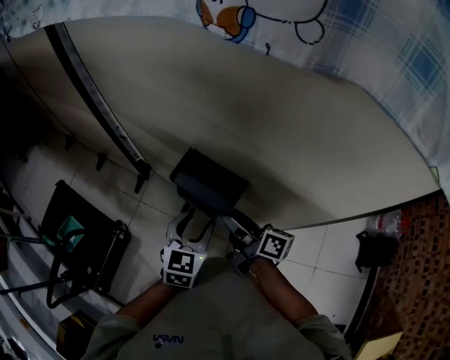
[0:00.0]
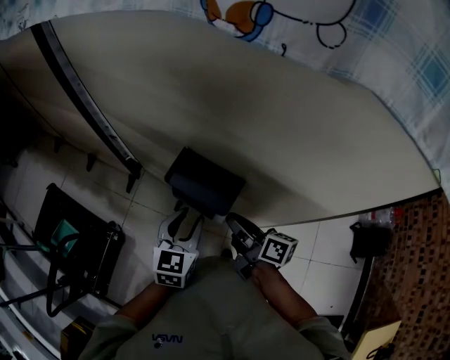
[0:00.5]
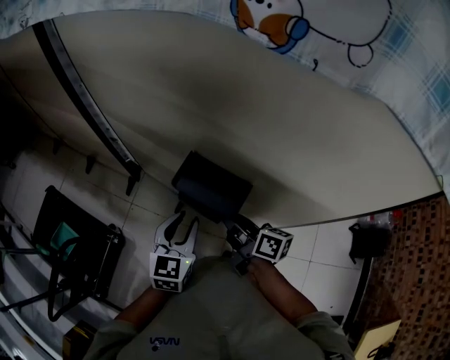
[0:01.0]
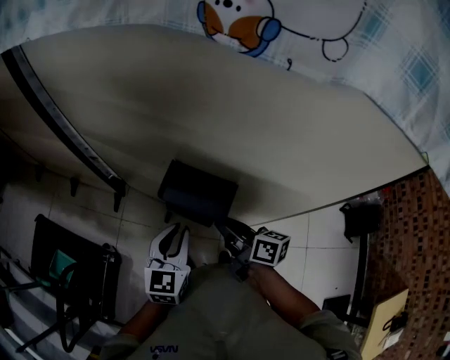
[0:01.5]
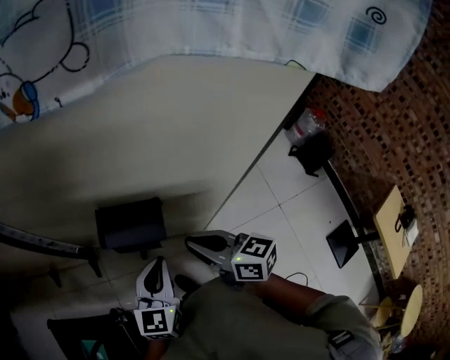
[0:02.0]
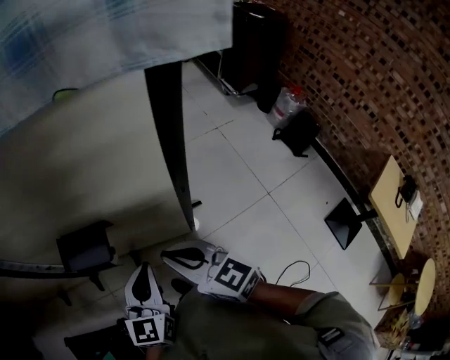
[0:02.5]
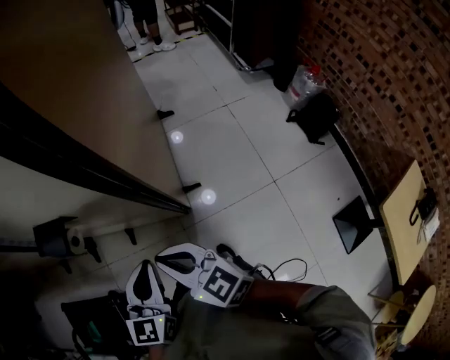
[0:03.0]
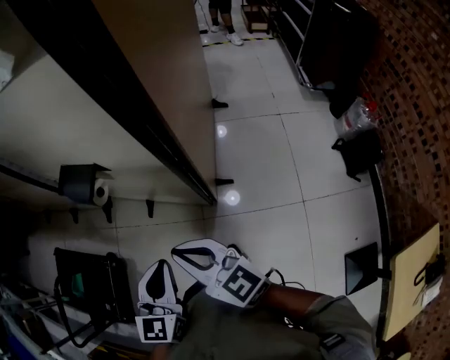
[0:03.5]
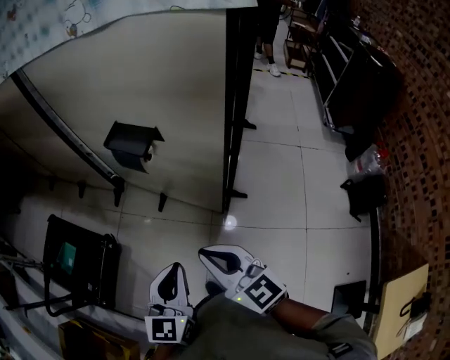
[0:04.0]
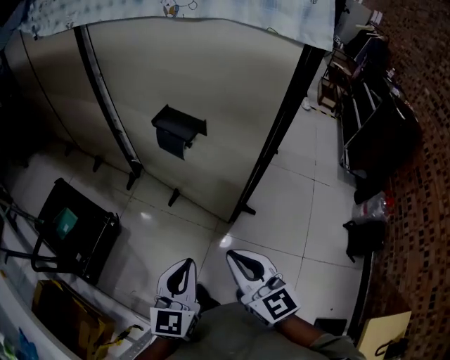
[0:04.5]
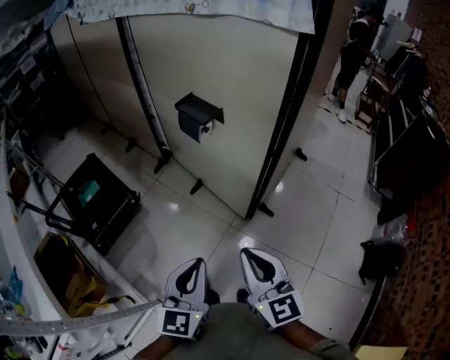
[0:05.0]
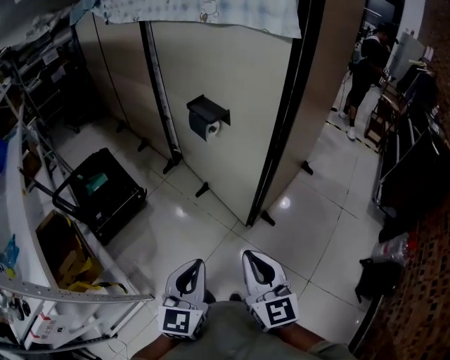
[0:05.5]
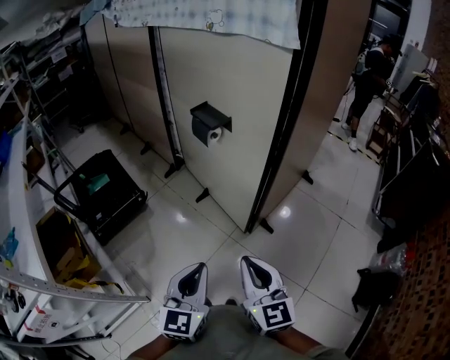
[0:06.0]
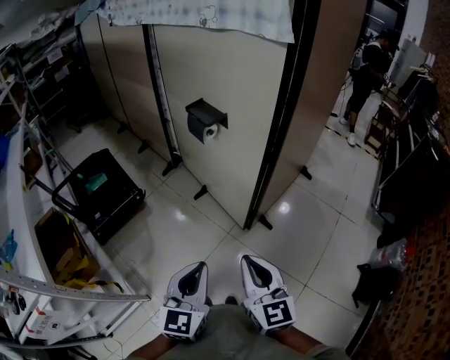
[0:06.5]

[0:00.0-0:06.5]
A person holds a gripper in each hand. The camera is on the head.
0:00.0 to 0:02.0: The right gripper goes approximately 10 cm backward and upward, turns by roughly 30 degrees, and closes. Meanwhile the left gripper ends up about 5 cm from where it was, swivels roughly 30 degrees, and closes.
0:02.0 to 0:04.5: The left gripper moves roughly 35 cm, and swivels about 30 degrees, while the right gripper changes place by some 35 cm, and rotates approximately 30 degrees.
0:04.5 to 0:06.5: Both grippers move backward and to the right, approximately 20 cm.

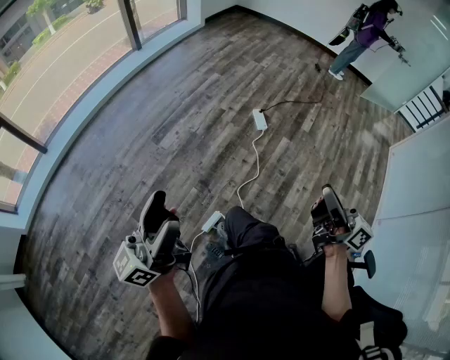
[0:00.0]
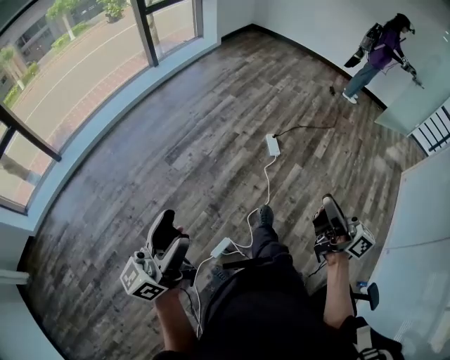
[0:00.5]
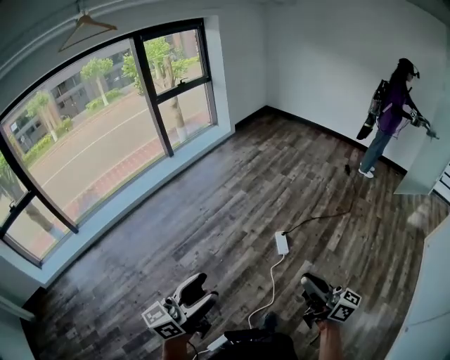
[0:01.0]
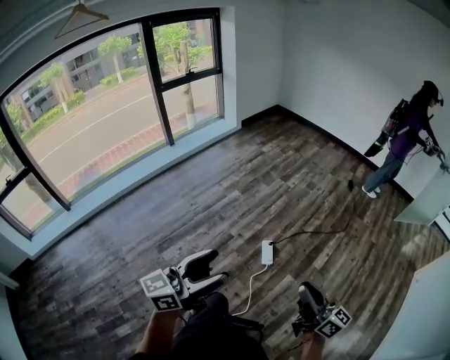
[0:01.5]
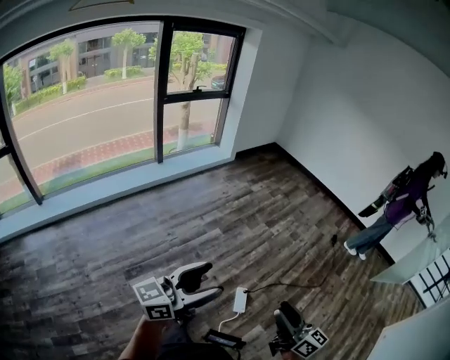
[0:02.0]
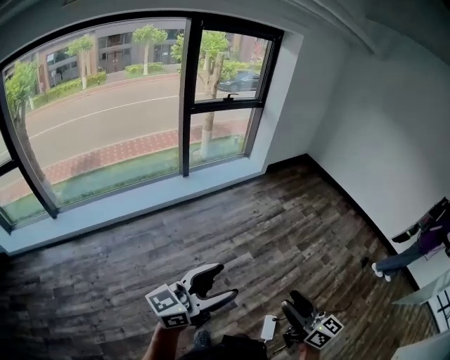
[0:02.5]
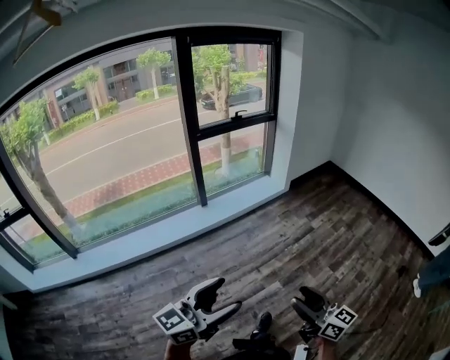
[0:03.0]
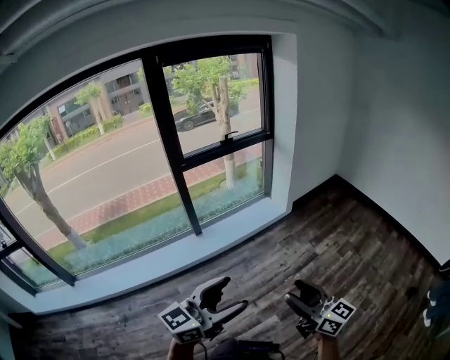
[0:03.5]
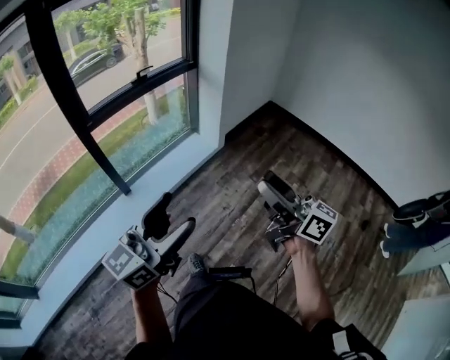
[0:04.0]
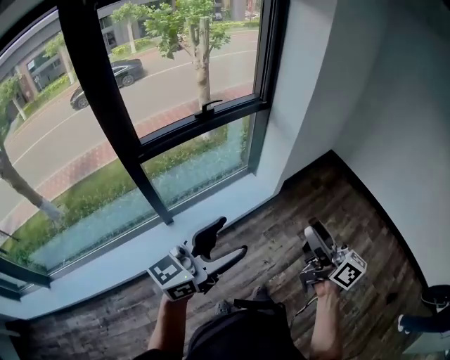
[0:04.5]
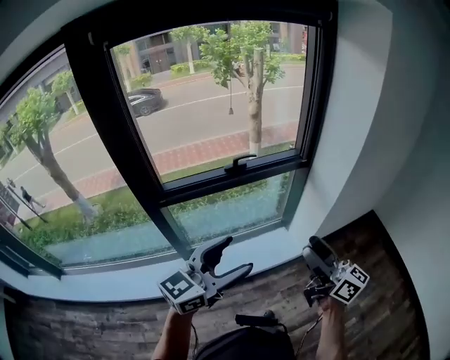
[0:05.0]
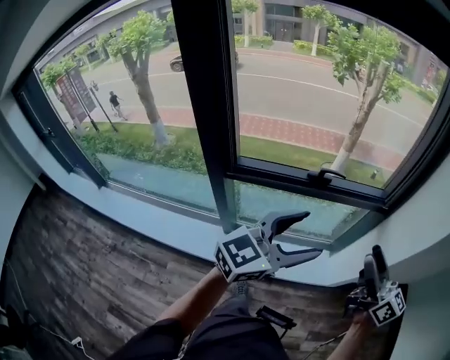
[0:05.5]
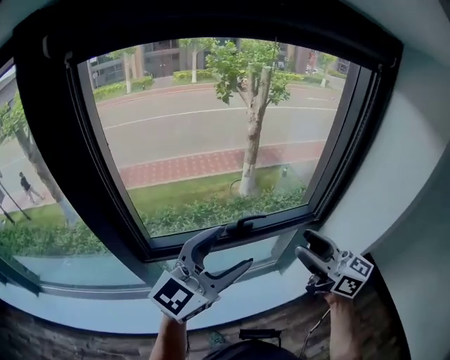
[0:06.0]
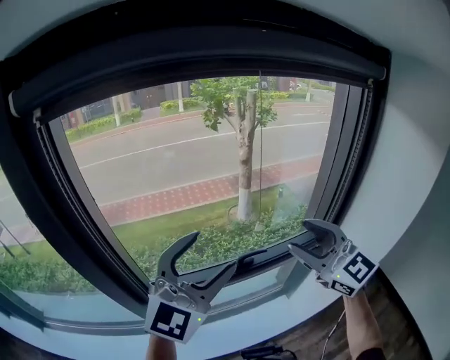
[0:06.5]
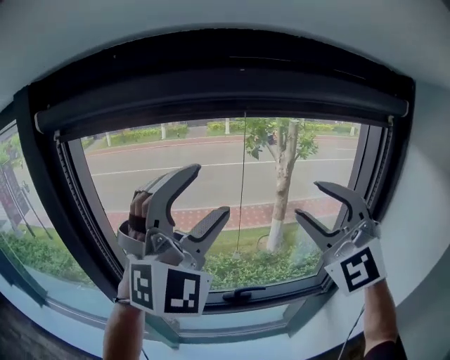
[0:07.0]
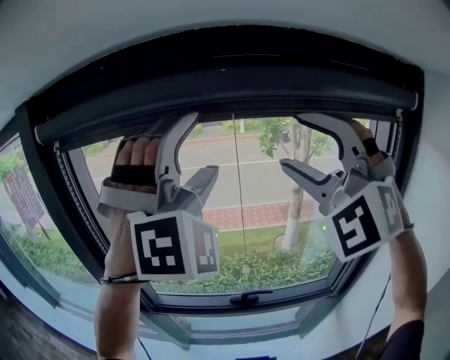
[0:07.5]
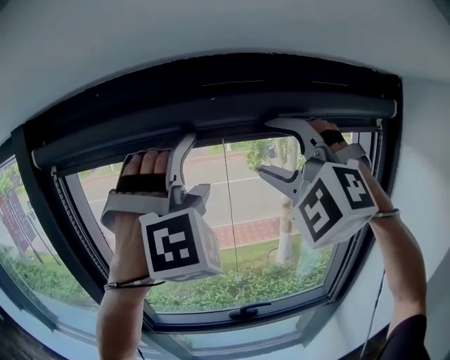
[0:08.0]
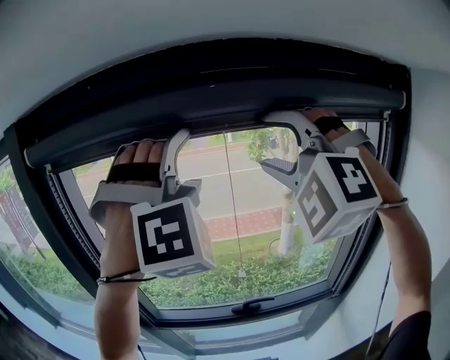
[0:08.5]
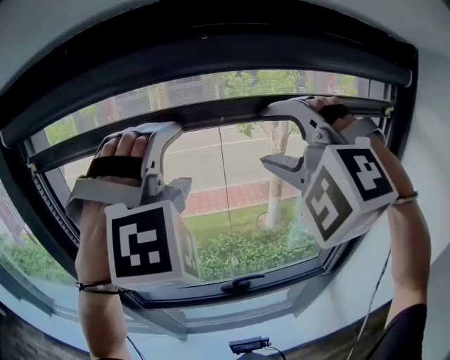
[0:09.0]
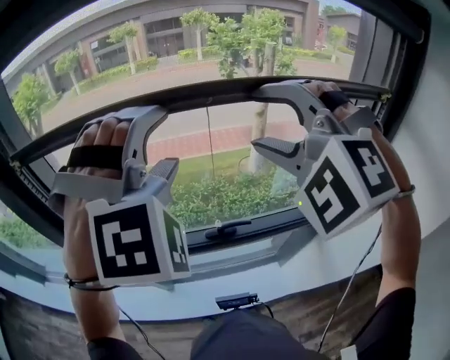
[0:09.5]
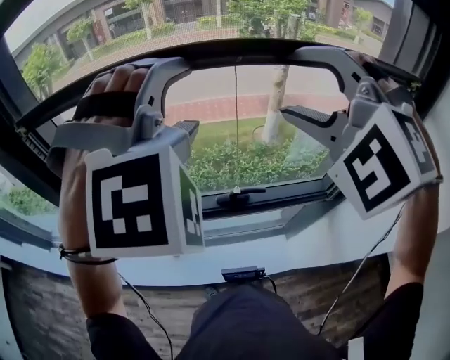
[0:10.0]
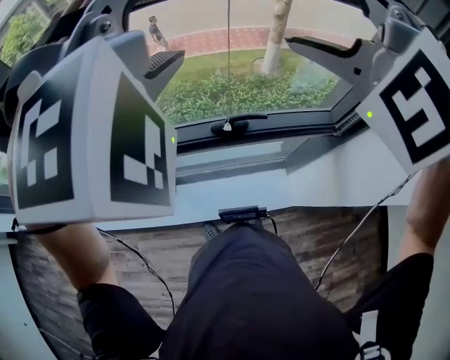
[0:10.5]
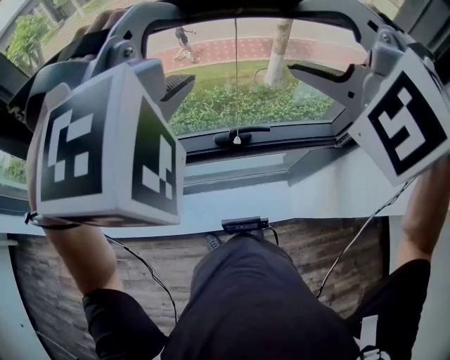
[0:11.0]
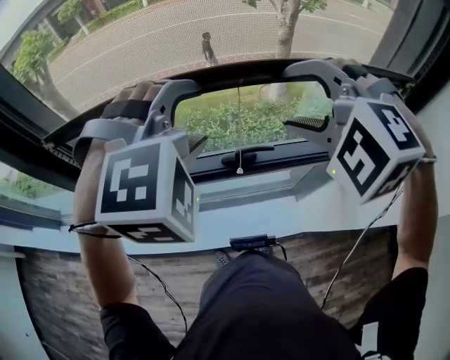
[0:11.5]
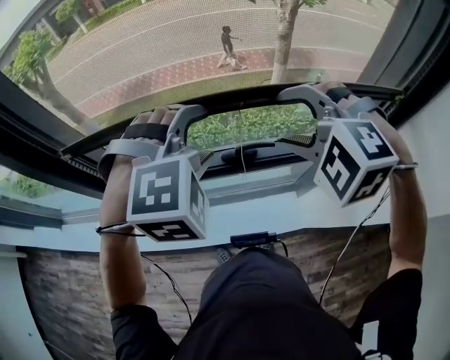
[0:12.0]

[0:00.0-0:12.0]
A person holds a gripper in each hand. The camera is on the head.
0:00.0 to 0:02.0: The two grippers travel together, forward, roughly 60 cm. The right gripper opens its fingers.
0:02.0 to 0:04.0: The two grippers travel together, forward, approximately 1 m.
0:04.0 to 0:06.0: Both grippers are carried about 70 cm. The right gripper turns by approximately 30 degrees. The left gripper turns by about 40 degrees.
0:06.0 to 0:08.0: Both grippers move upward and forward, some 35 cm. The right gripper rotates around the line of its fingers by some 100 degrees, counterclockwise from behind; the left gripper rolls clockwise, seen from behind, by about 90 degrees.
0:08.0 to 0:10.0: Both grippers travel together downward, some 15 cm. The left gripper changes its angle by some 30 degrees, while the right gripper swivels some 30 degrees.
0:10.0 to 0:12.0: The grippers both shift downward by about 15 cm. The left gripper turns by some 30 degrees; the right gripper turns by about 30 degrees.

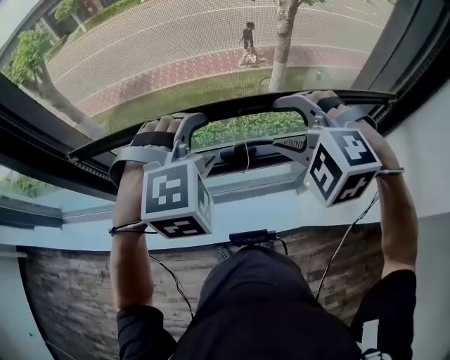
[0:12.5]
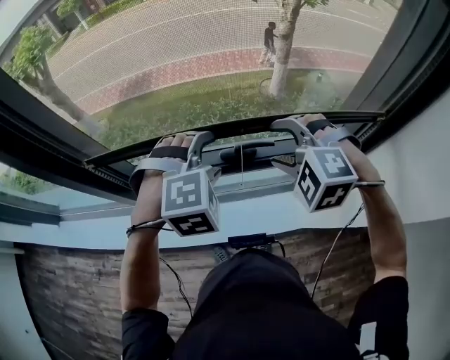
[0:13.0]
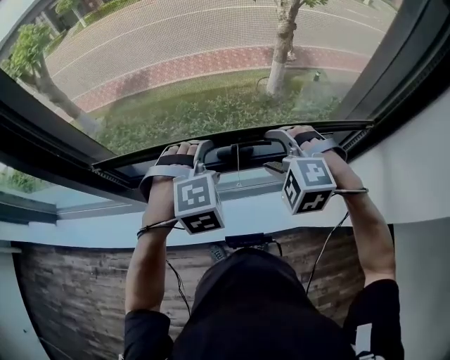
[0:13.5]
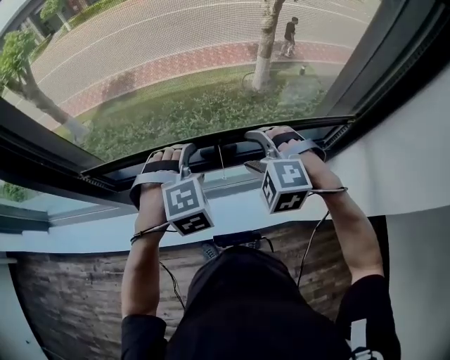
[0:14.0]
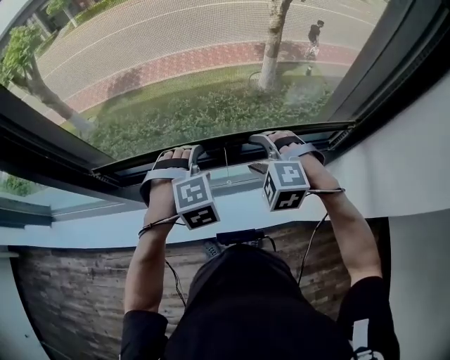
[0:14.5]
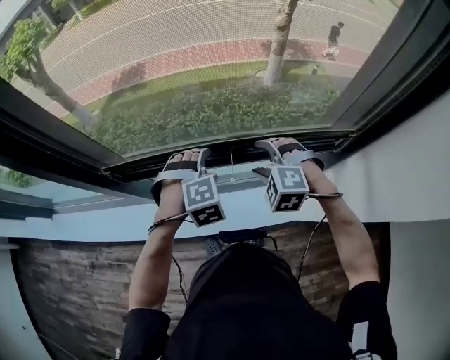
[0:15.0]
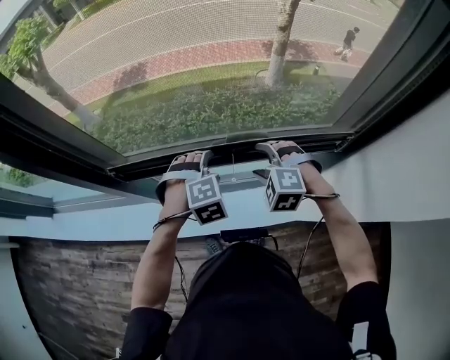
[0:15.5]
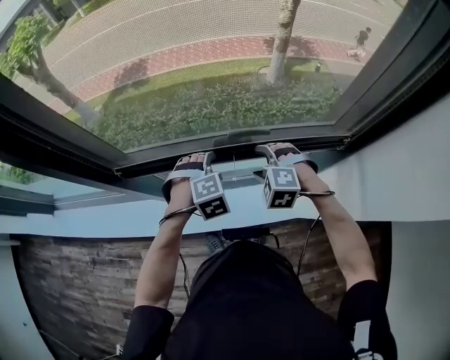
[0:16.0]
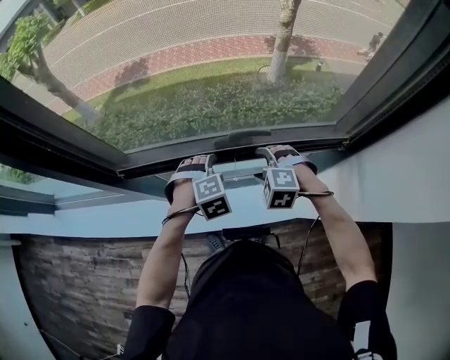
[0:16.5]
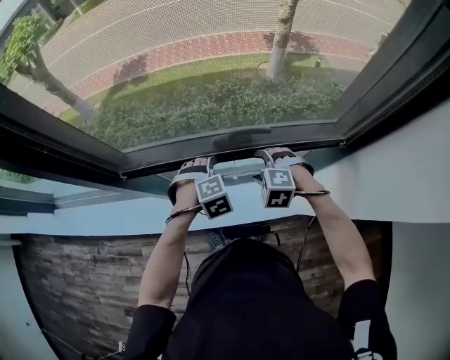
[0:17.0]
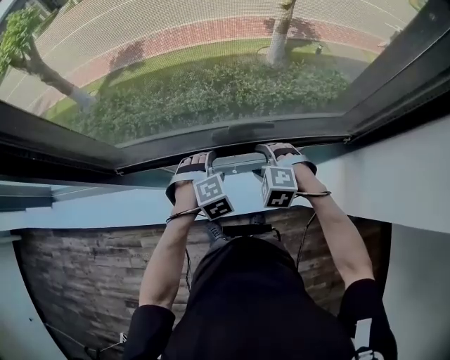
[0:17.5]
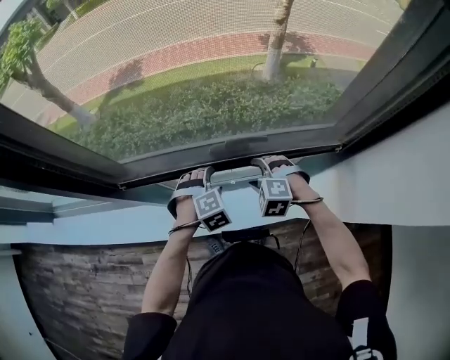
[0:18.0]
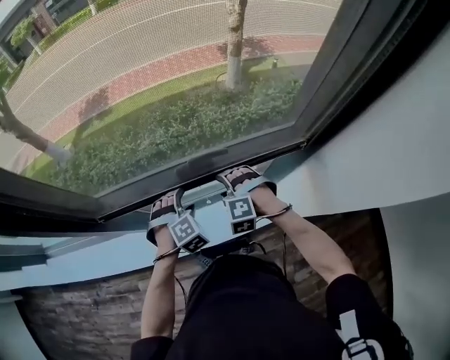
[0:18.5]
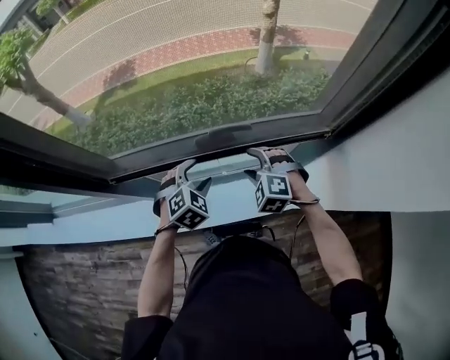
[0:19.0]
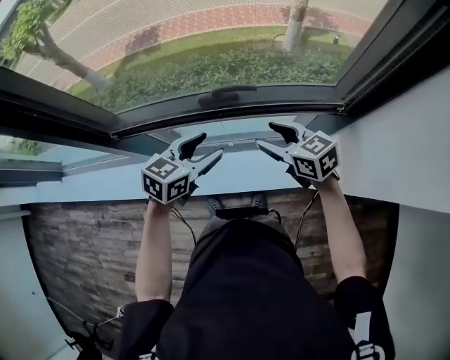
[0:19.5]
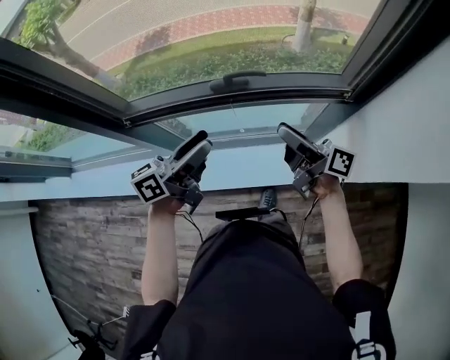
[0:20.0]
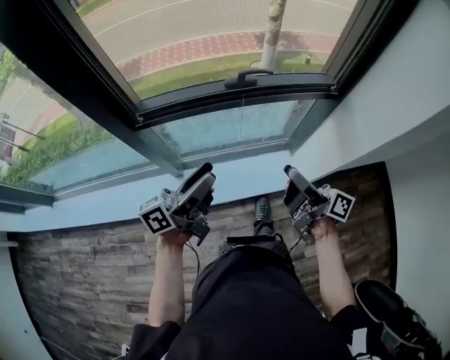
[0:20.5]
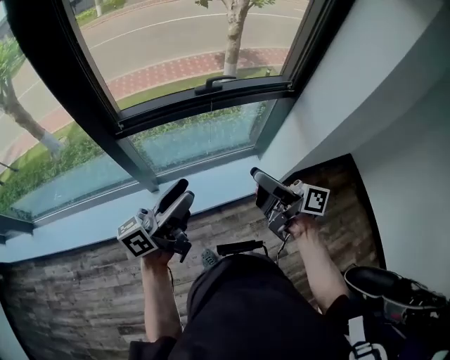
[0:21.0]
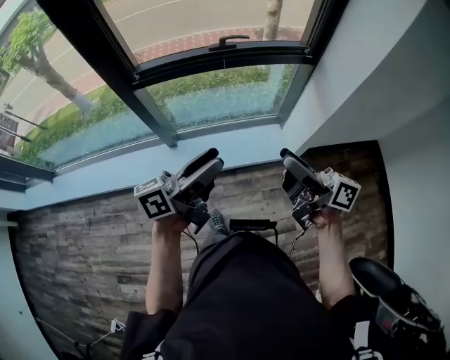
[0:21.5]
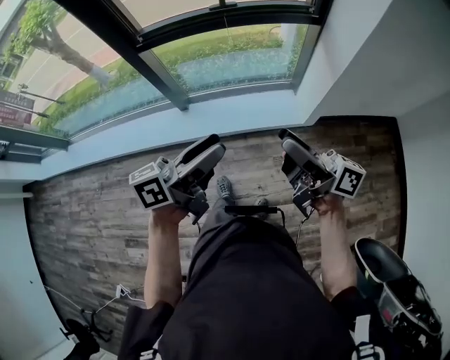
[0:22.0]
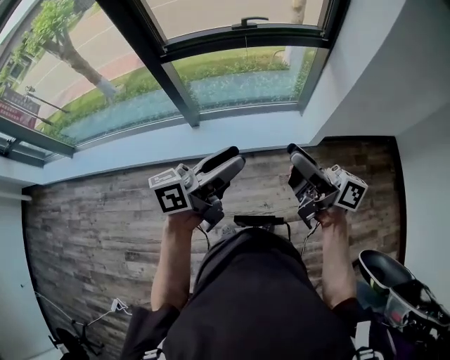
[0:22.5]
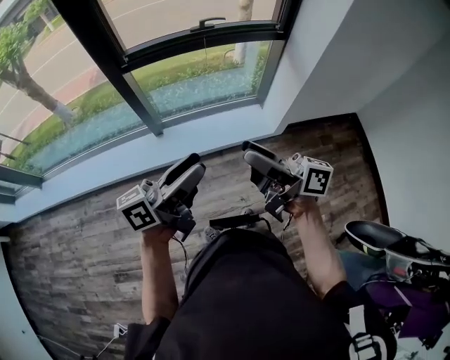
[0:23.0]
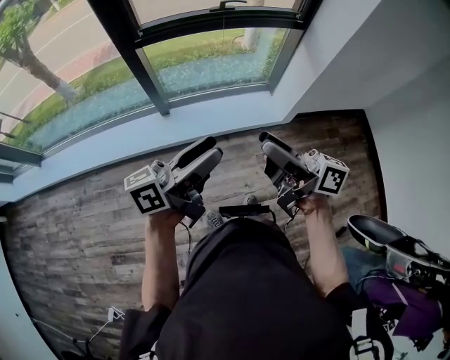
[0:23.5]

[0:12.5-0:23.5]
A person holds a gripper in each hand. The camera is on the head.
0:12.5 to 0:14.5: Both grippers travel together downward, about 20 cm.
0:14.5 to 0:16.0: The two grippers go some 10 cm downward.
0:16.0 to 0:18.0: The grippers move only a little.
0:18.0 to 0:20.0: The right gripper moves upward, backward and to the right, some 15 cm, and angles its fingers upward, by about 70 degrees, while the left gripper travels upward and backward by some 20 cm, and tilts its fingers roughly 60 degrees upward.
0:20.0 to 0:21.5: Both grippers travel together backward, roughly 30 cm.
0:21.5 to 0:23.5: The left gripper travels backward by some 15 cm. Meanwhile the right gripper travels backward and to the left by approximately 20 cm.
